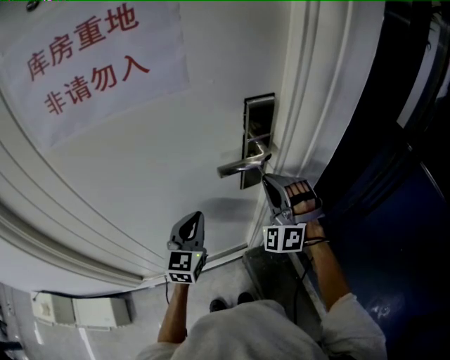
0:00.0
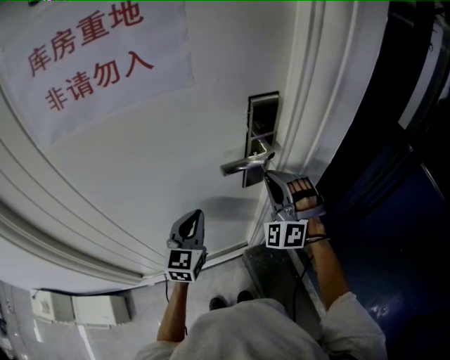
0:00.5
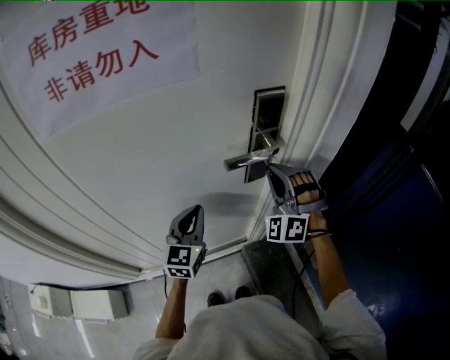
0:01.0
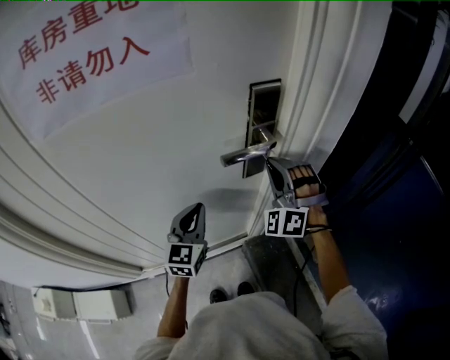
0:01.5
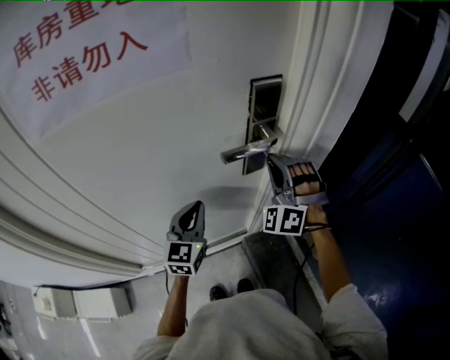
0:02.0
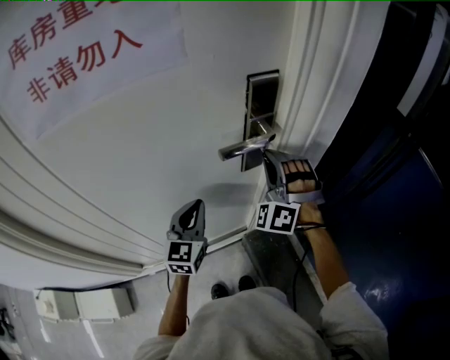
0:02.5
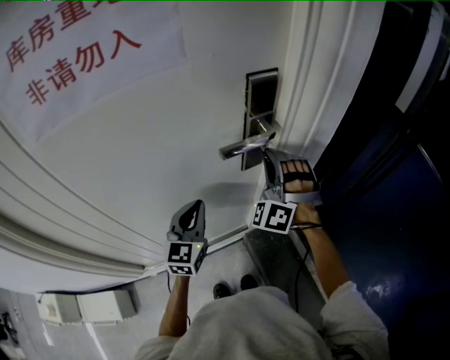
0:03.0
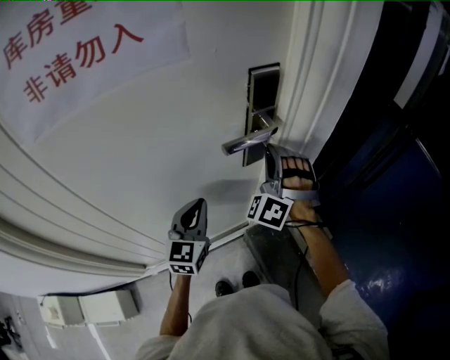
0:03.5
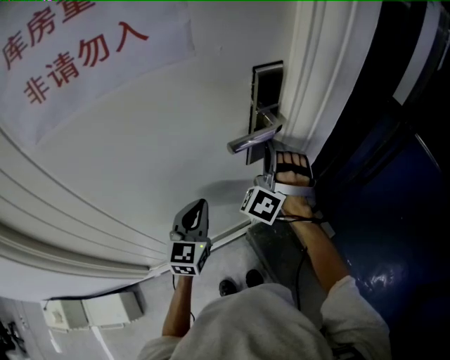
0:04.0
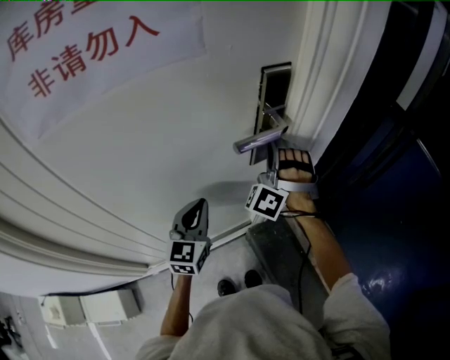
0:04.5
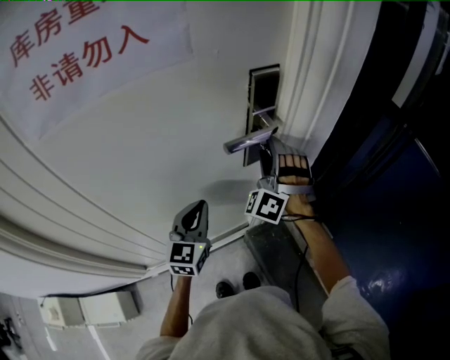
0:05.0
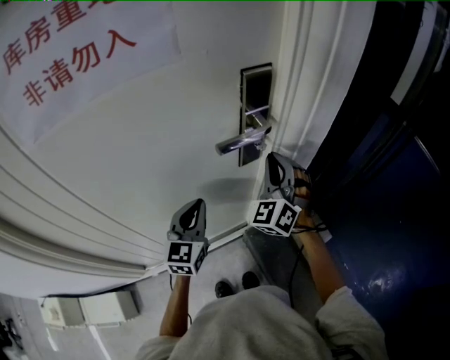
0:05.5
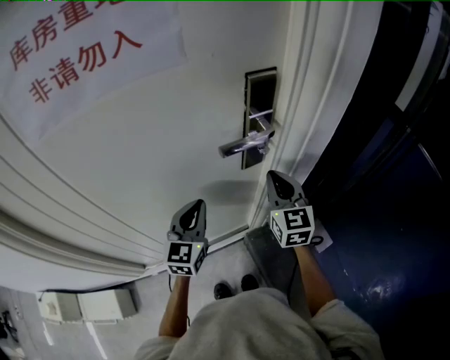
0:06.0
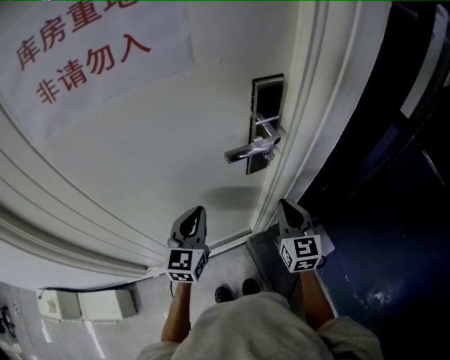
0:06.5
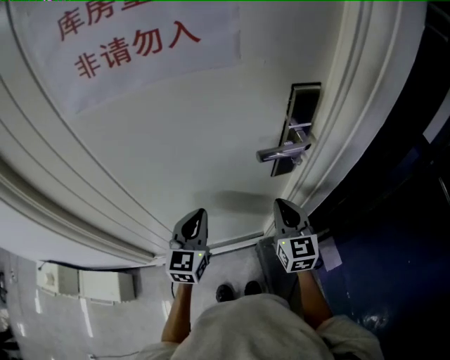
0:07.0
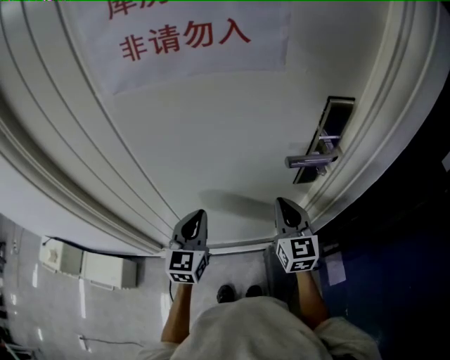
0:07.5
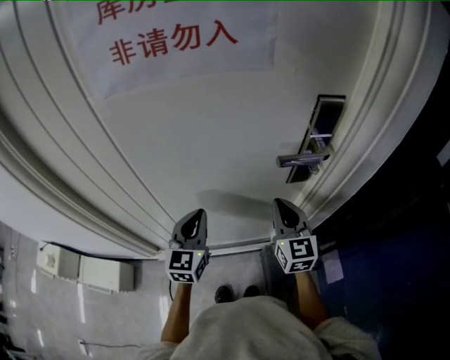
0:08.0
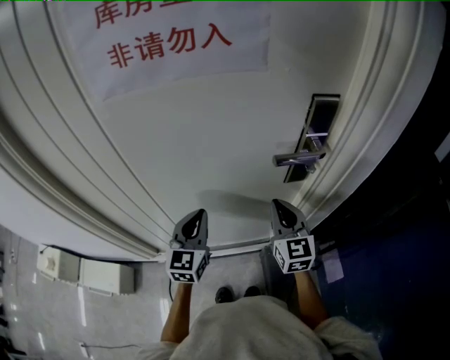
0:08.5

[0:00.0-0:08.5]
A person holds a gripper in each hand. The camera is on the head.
0:00.0 to 0:02.0: The grippers stay close to where they were, moving slightly.
0:02.0 to 0:04.0: The right gripper swivels some 20 degrees.
0:04.0 to 0:06.5: The right gripper moves backward, downward and to the right, approximately 15 cm, twists approximately 70 degrees clockwise, seen from behind, and opens, then closes once more.
0:06.5 to 0:08.5: Both grippers travel together to the left, about 10 cm.

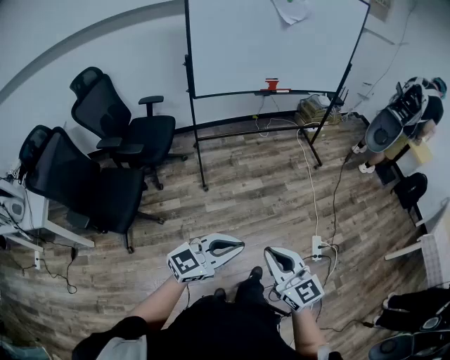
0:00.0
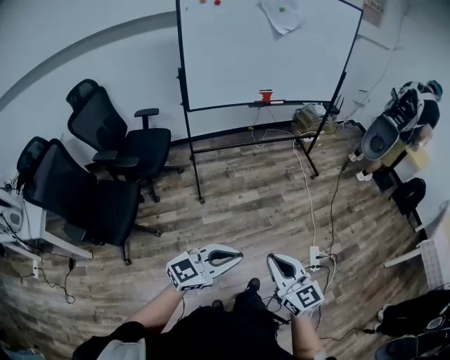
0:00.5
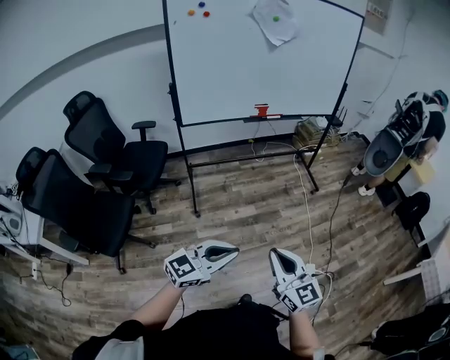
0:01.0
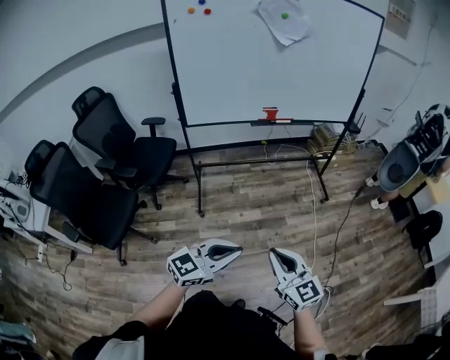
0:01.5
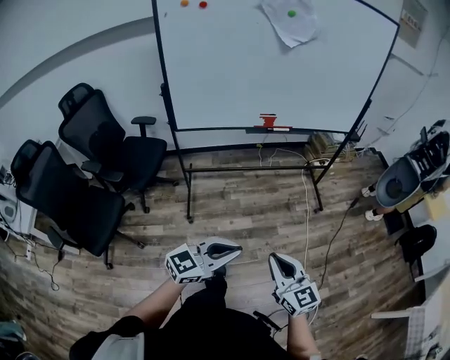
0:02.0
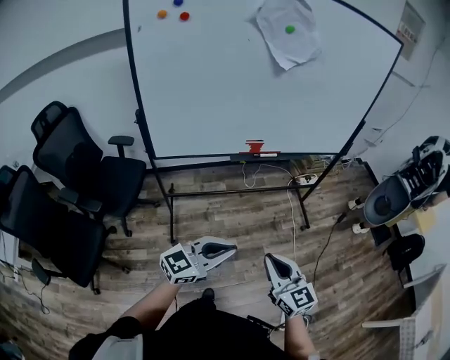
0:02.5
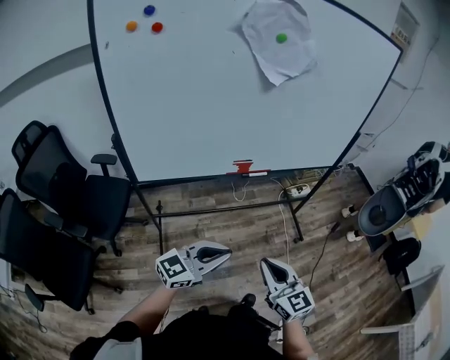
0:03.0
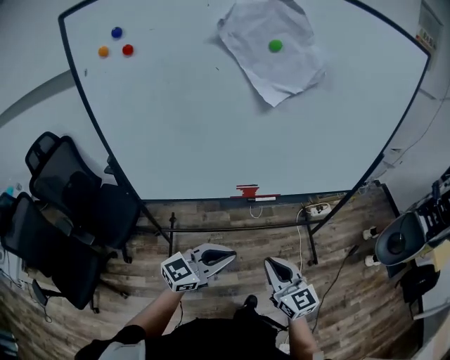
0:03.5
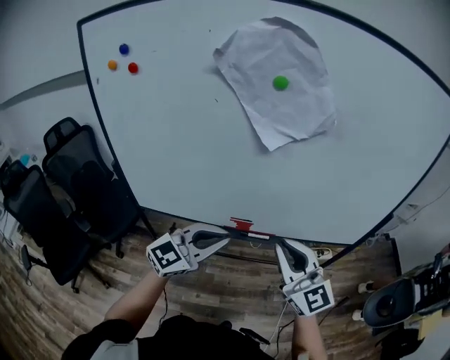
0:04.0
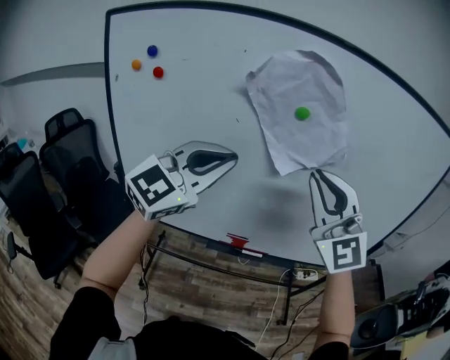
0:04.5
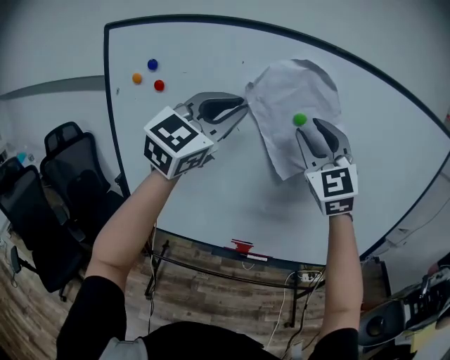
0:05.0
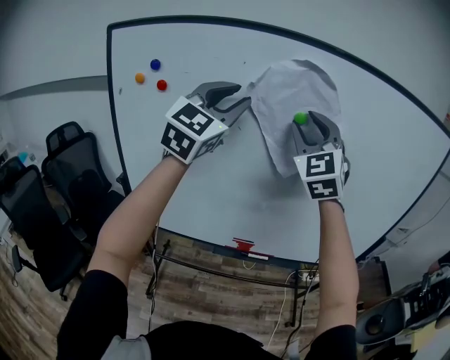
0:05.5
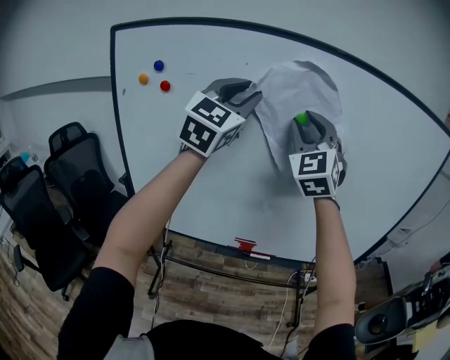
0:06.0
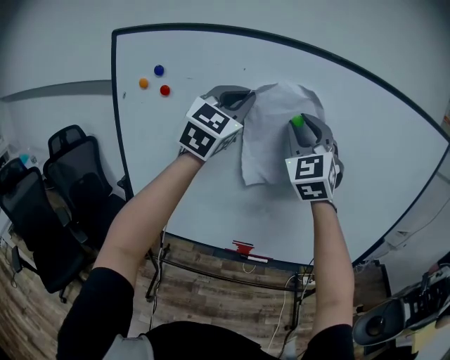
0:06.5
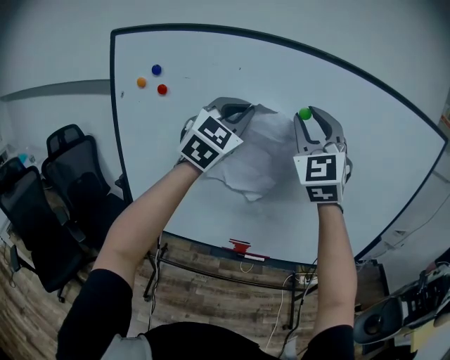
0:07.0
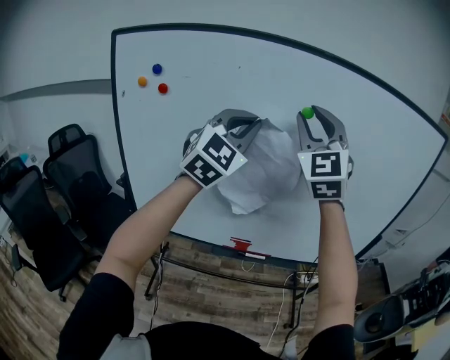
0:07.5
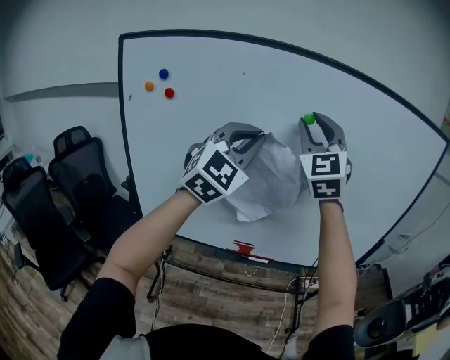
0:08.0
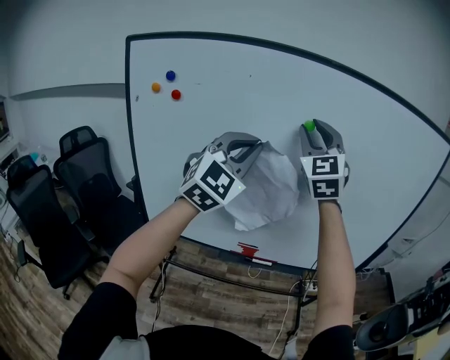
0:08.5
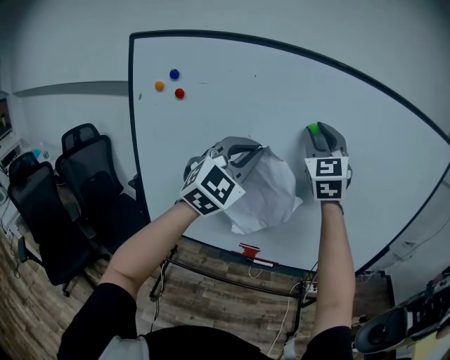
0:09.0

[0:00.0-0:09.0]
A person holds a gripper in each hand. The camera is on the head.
0:00.0 to 0:02.0: Both grippers travel together forward, approximately 35 cm.
0:02.0 to 0:04.5: The two grippers travel together, some 60 cm. The left gripper swivels about 50 degrees. The right gripper rotates around the line of its fingers by about 50 degrees, counterclockwise from behind.
0:04.5 to 0:07.0: Both grippers move upward and forward, about 15 cm. The left gripper swivels approximately 20 degrees, and opens, then closes again, while the right gripper swivels roughly 20 degrees, and opens.
0:07.0 to 0:09.0: The right gripper is displaced forward by roughly 5 cm. Meanwhile the left gripper travels downward and backward by some 10 cm.

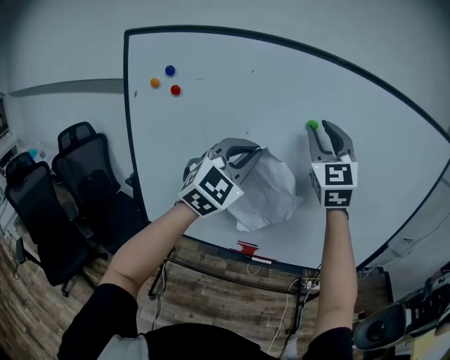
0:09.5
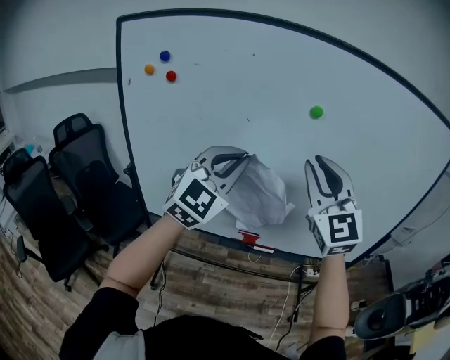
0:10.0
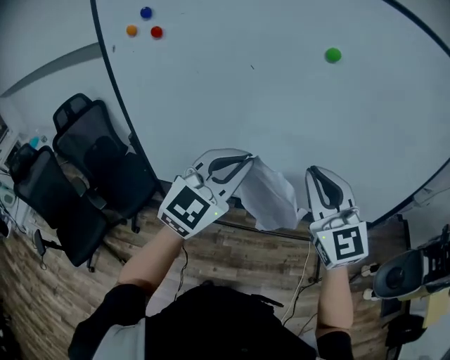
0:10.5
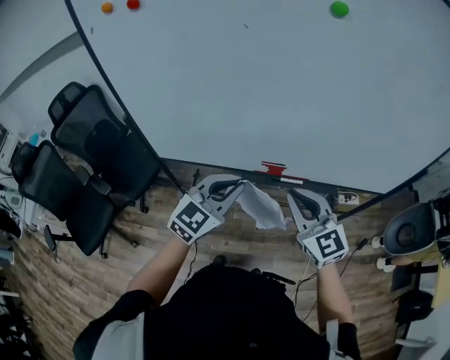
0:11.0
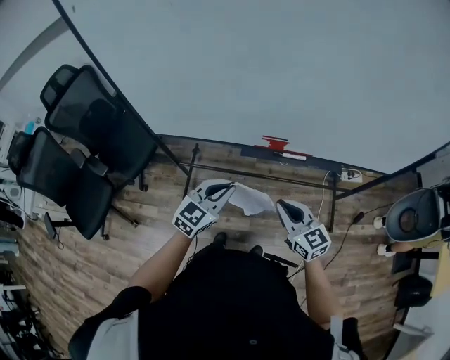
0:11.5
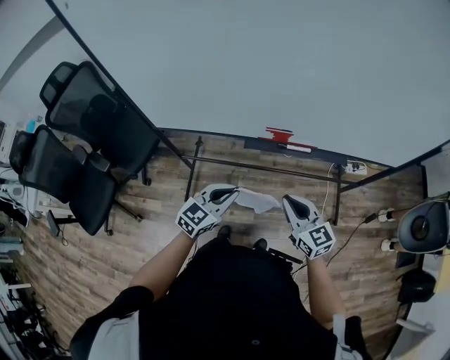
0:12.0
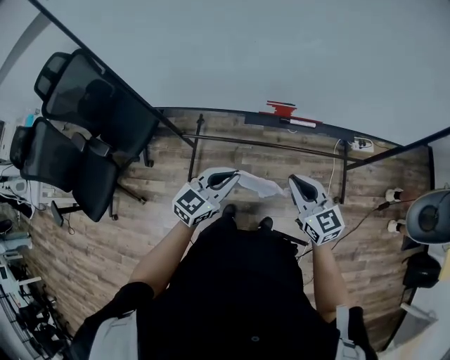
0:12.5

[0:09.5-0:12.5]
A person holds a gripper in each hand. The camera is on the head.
0:09.5 to 0:11.0: Both grippers move downward, approximately 35 cm. The right gripper rotates about 40 degrees, and closes up. Meanwhile the left gripper swivels roughly 40 degrees.
0:11.0 to 0:12.5: The grippers both shift downward by roughly 20 cm. The right gripper swivels about 20 degrees.

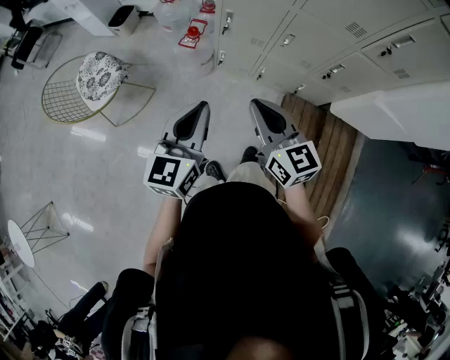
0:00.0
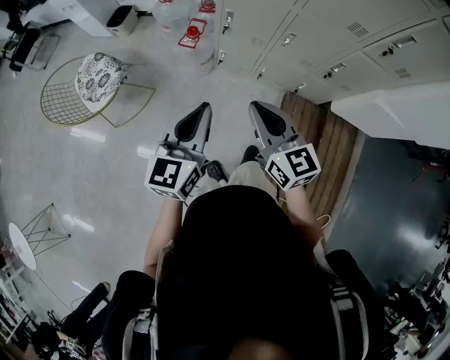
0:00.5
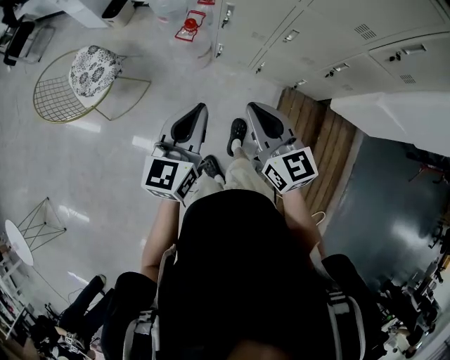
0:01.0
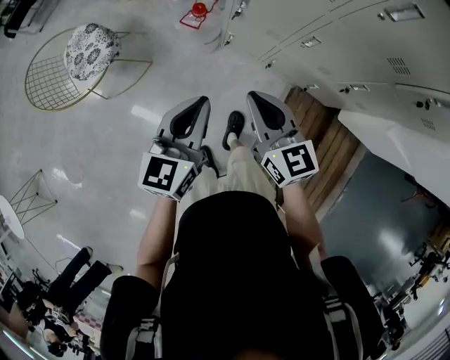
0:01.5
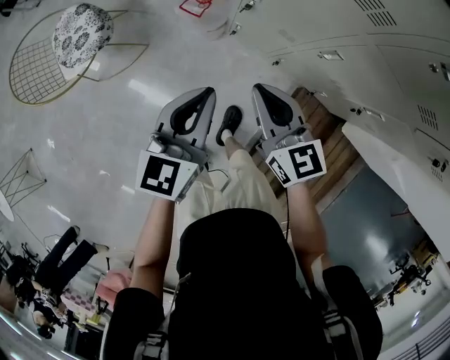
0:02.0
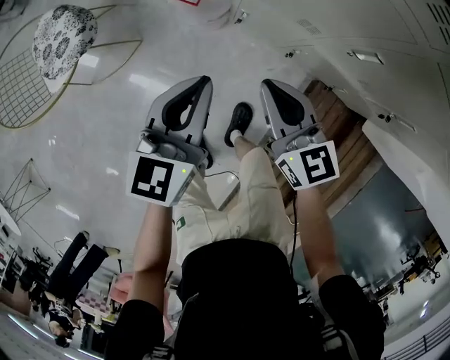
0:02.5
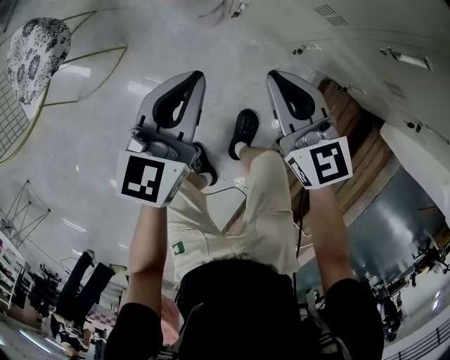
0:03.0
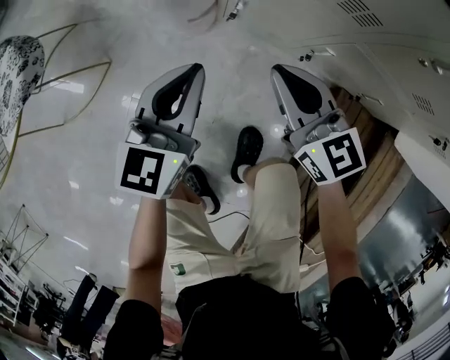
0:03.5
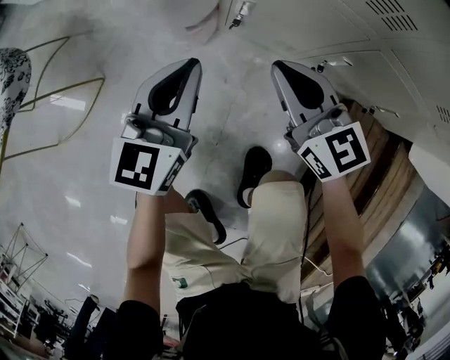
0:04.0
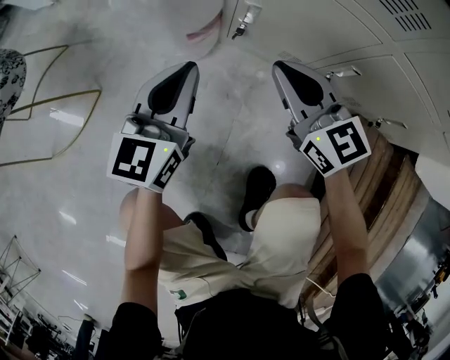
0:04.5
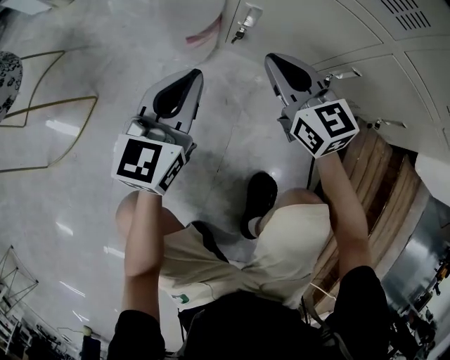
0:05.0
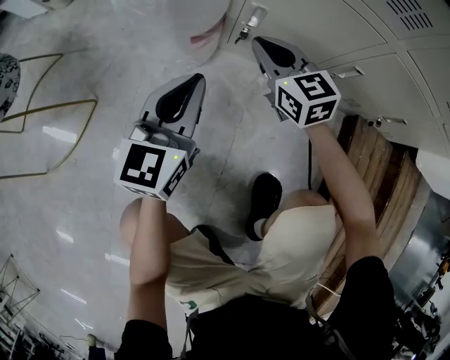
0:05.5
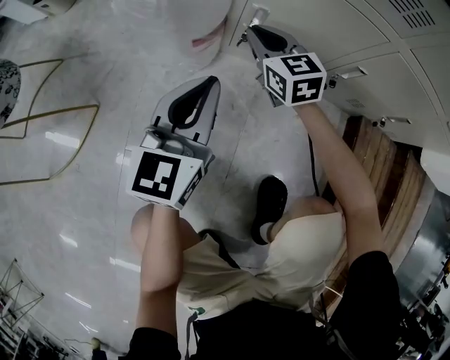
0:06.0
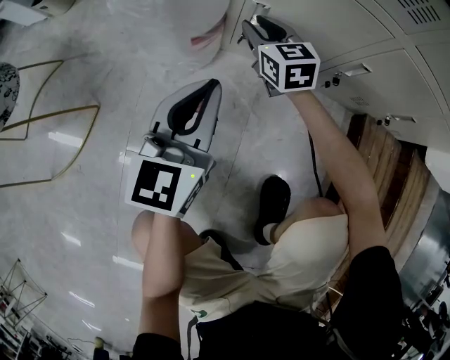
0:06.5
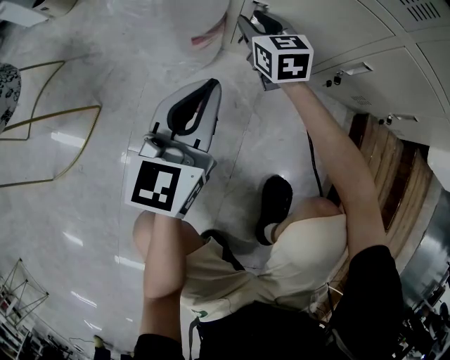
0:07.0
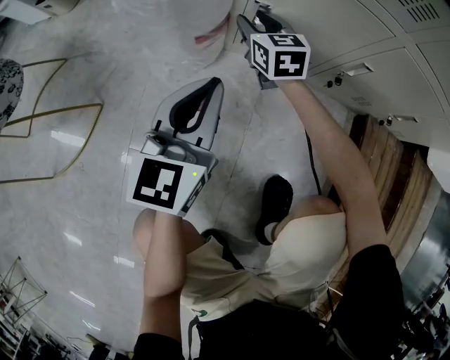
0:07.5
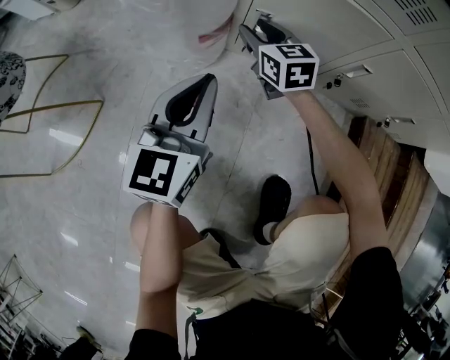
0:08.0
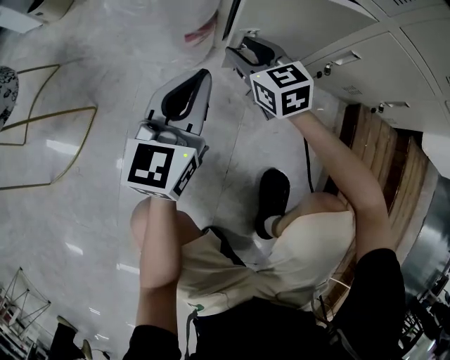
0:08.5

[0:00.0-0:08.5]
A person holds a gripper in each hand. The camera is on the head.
0:00.0 to 0:02.0: Both grippers travel together forward and downward, about 30 cm.
0:02.0 to 0:04.0: The right gripper swings up and down, about 35 cm each way, with 2 reversals. The left gripper swings up and down, some 30 cm each way, with 2 reversals.
0:04.0 to 0:06.5: The right gripper heads downward and forward, covering roughly 25 cm, and opens up, while the left gripper is displaced downward by approximately 10 cm.
0:06.5 to 0:08.5: The right gripper travels backward by roughly 10 cm.
